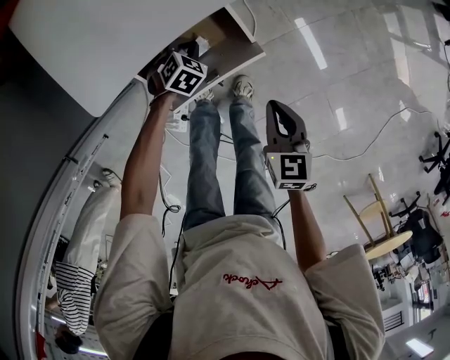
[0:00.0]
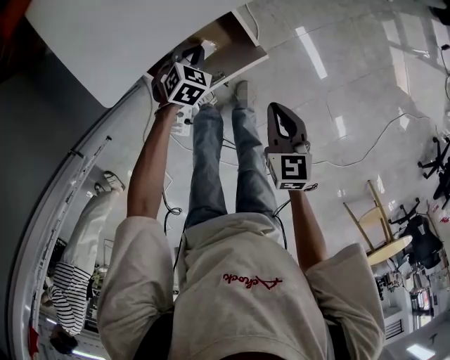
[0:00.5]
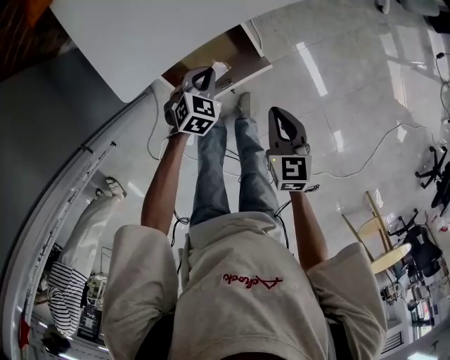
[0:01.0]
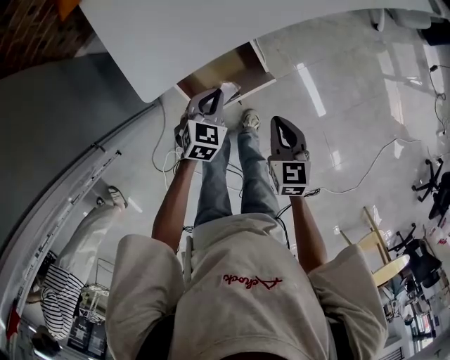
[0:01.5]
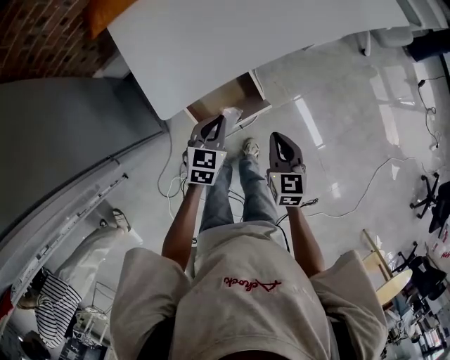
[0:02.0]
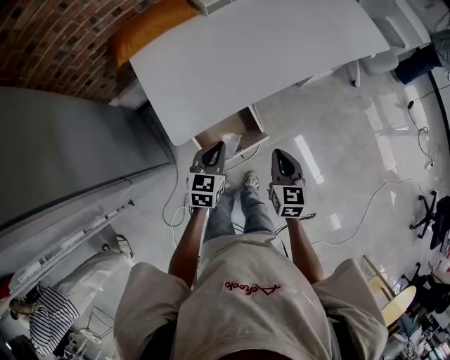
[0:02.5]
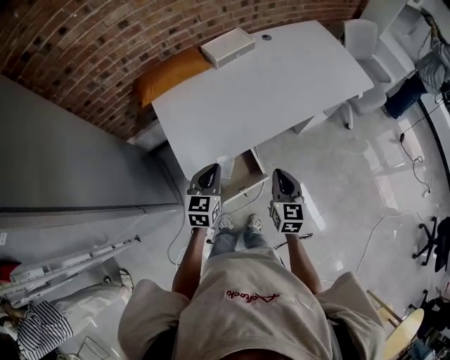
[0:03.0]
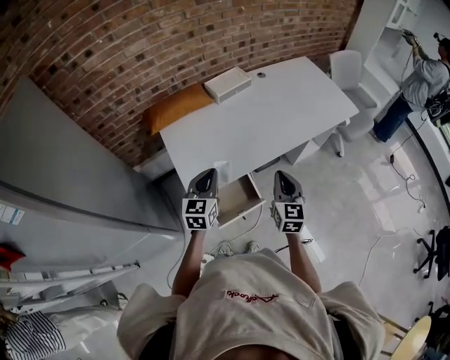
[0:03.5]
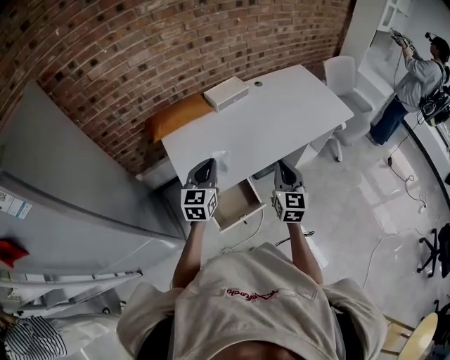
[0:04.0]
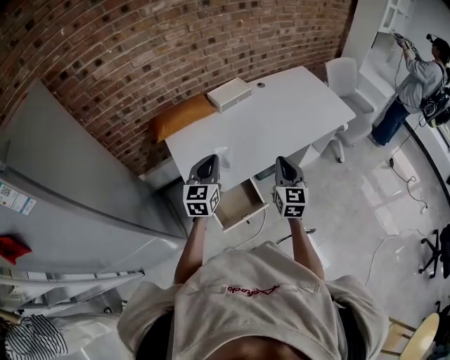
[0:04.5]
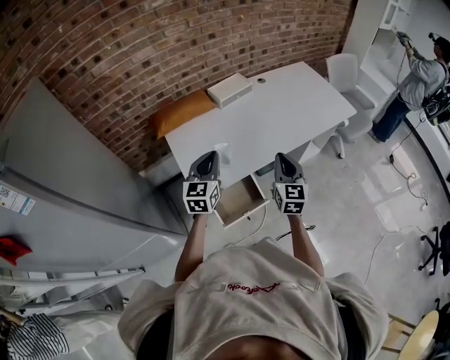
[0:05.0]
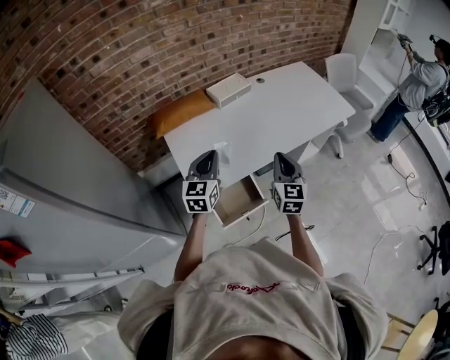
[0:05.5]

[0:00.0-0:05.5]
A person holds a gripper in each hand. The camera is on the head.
0.0 to 2.0 s: The left gripper travels upward by about 30 cm, and points its fingers roughly 30 degrees further upward, while the right gripper heads upward, covering roughly 15 cm.
2.0 to 3.5 s: Both grippers travel together upward, approximately 25 cm. The right gripper rotates roughly 30 degrees; the left gripper swivels roughly 30 degrees.
3.5 to 5.5 s: The right gripper ends up some 5 cm from where it was. Meanwhile the left gripper goes some 5 cm upward.

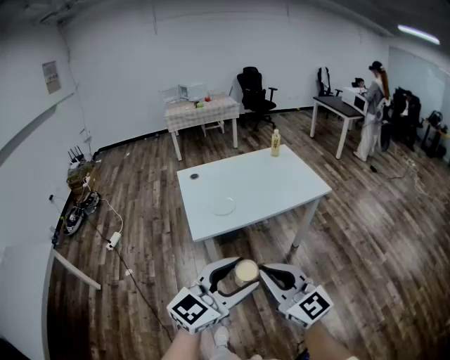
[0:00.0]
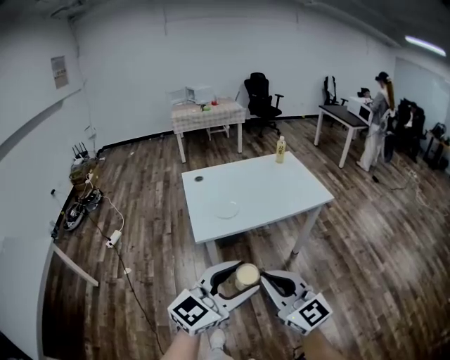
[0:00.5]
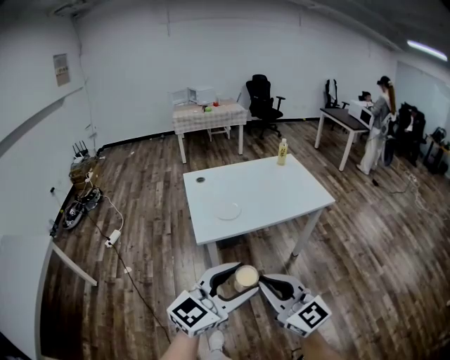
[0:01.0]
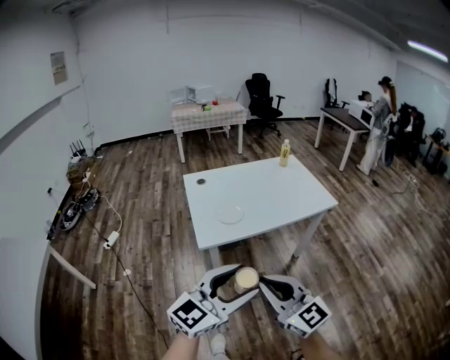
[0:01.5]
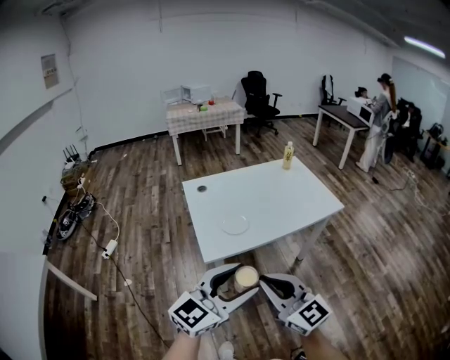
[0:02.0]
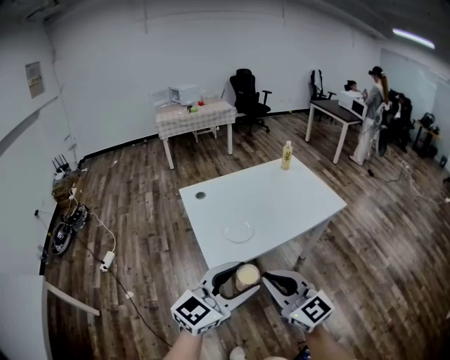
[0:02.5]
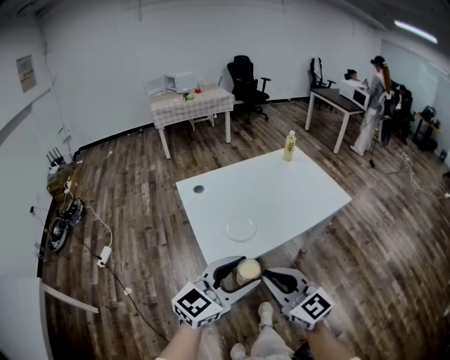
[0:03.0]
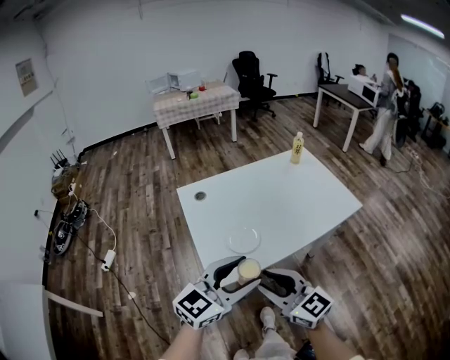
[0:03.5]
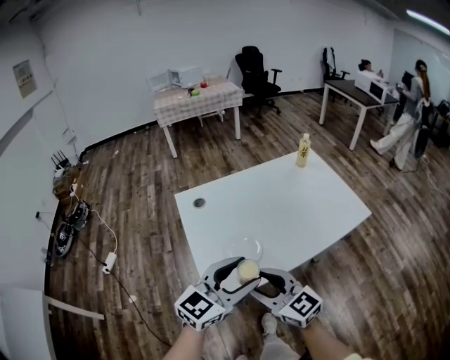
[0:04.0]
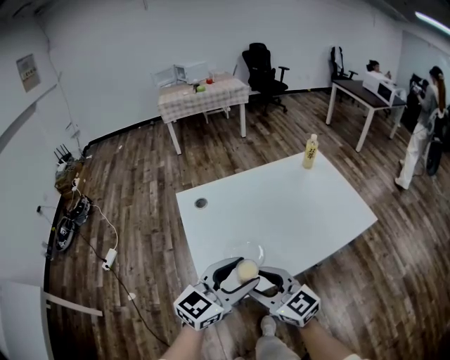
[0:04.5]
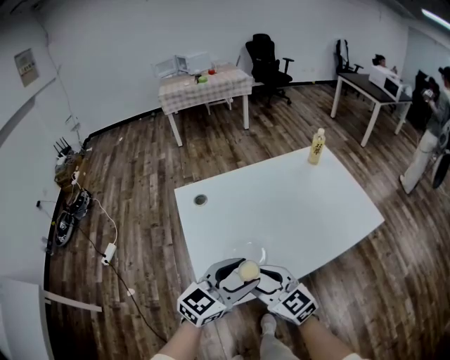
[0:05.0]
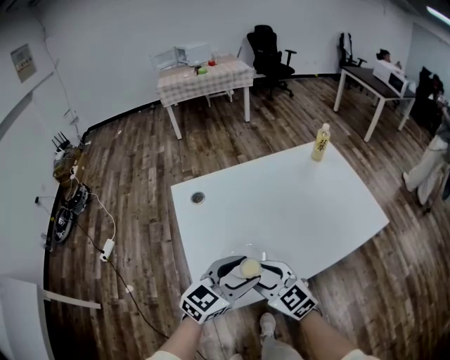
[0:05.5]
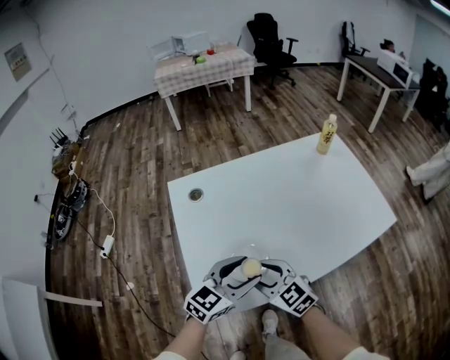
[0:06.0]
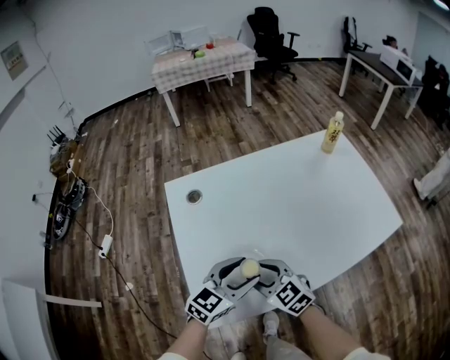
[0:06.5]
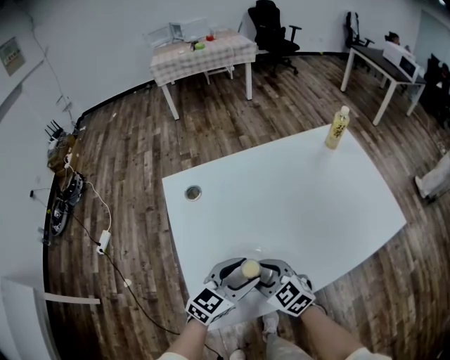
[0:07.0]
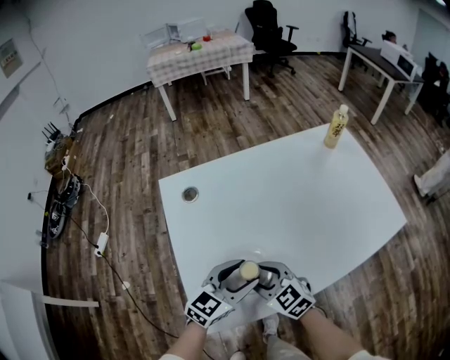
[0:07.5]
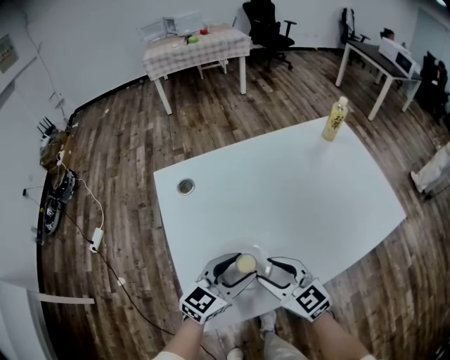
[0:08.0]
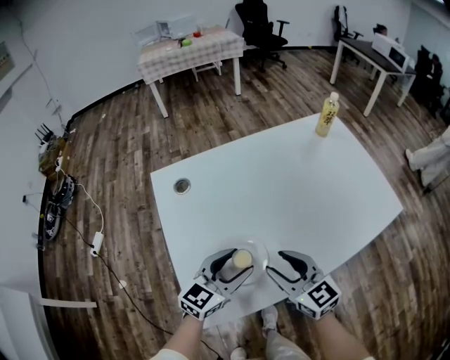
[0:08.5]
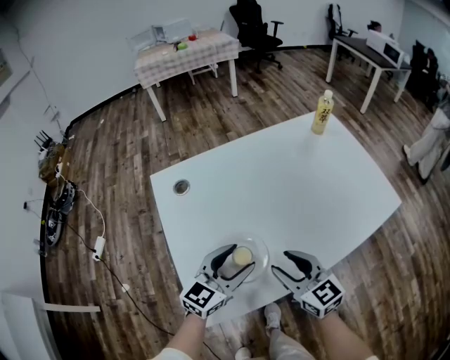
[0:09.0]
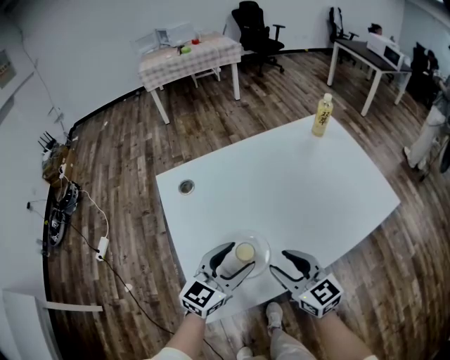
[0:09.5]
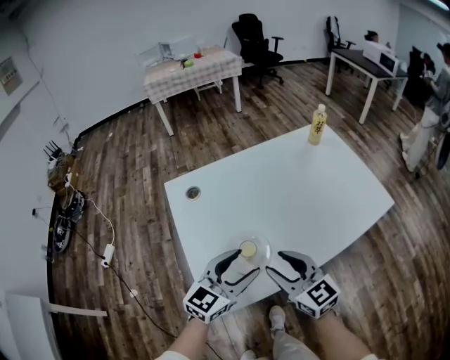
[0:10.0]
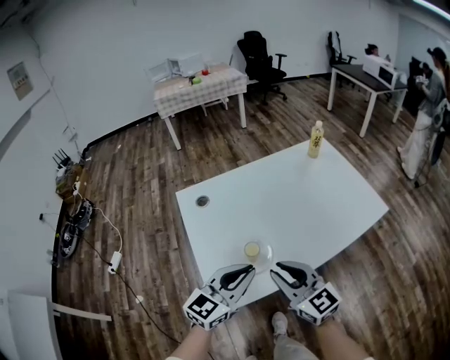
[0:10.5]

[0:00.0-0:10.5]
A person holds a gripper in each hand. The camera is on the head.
0.0 to 2.0 s: The left gripper shifts about 15 cm forward and to the left, while the right gripper shifts roughly 10 cm to the left and forward.
2.0 to 4.0 s: The right gripper goes about 25 cm forward and downward, and opens. The left gripper heads forward, covering approximately 25 cm.
4.0 to 6.5 s: The two grippers go approximately 25 cm downward and forward. The right gripper swivels about 30 degrees.
6.5 to 8.5 s: The right gripper goes about 5 cm to the right, and rotates some 20 degrees.
8.5 to 10.5 s: The two grippers go approximately 15 cm upward and backward. The left gripper closes, while the right gripper closes.

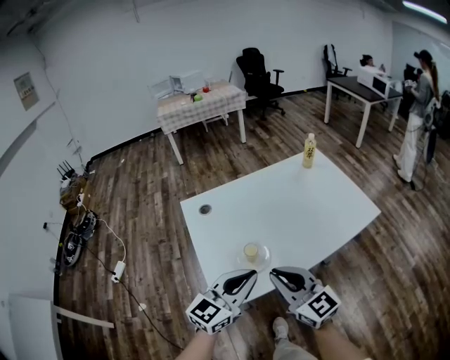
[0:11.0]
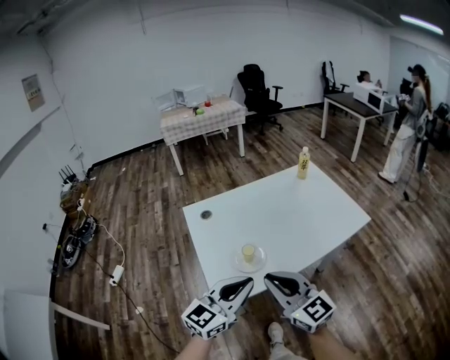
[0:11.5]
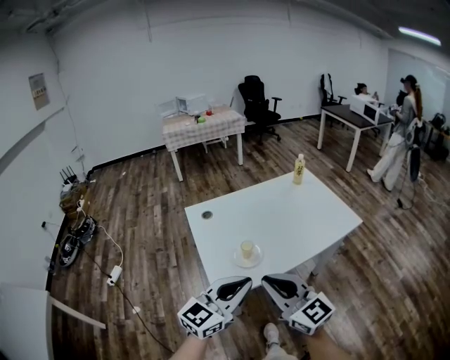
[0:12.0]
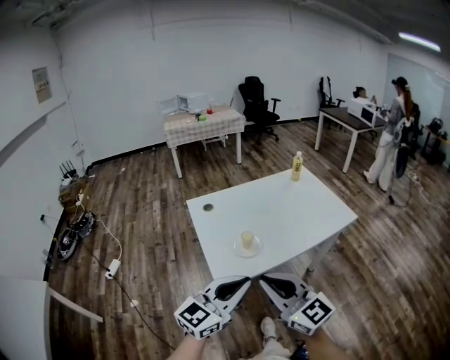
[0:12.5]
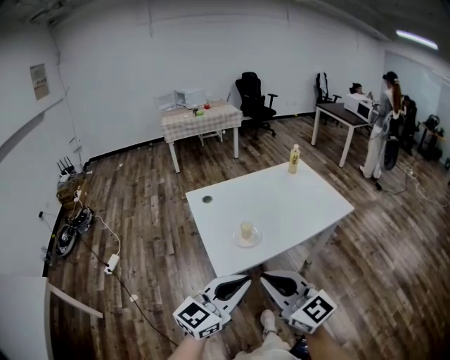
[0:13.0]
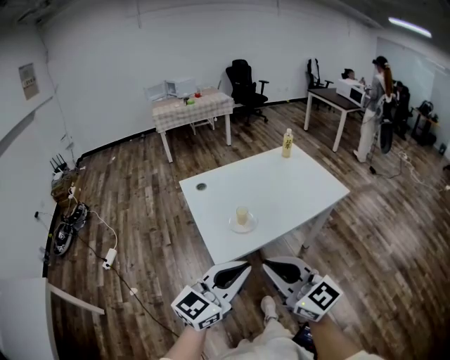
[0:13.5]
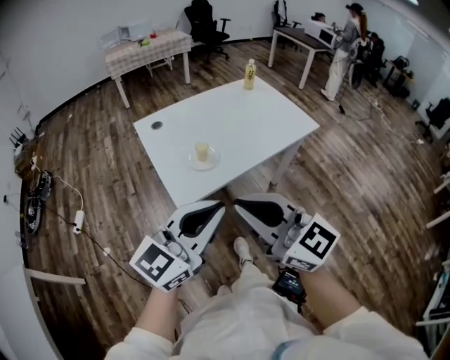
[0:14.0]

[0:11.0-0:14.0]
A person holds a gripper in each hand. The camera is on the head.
11.0 to 12.5 s: The two grippers go some 20 cm backward and upward.
12.5 to 14.0 s: The left gripper moves roughly 5 cm. Meanwhile the right gripper shifts by some 5 cm.

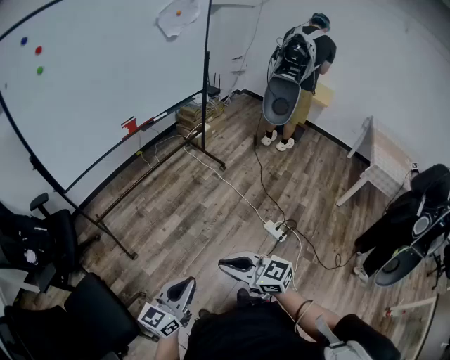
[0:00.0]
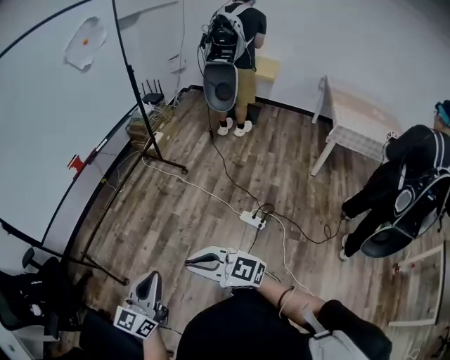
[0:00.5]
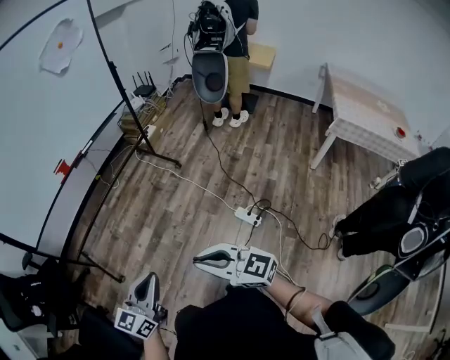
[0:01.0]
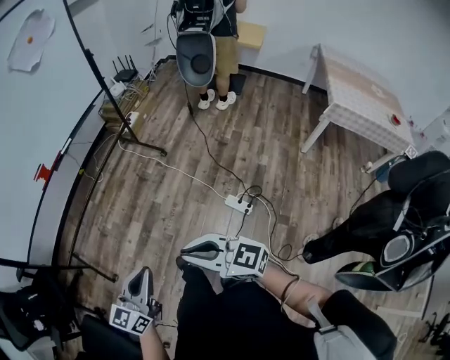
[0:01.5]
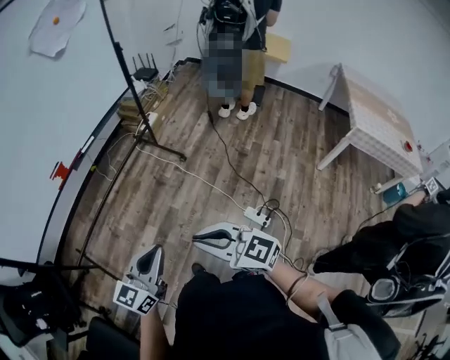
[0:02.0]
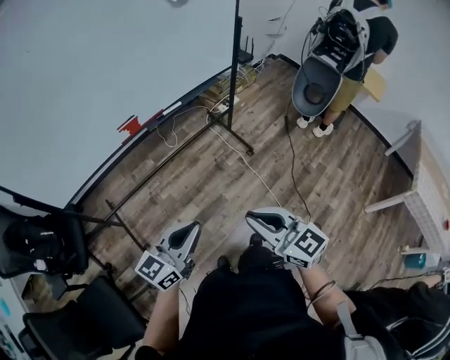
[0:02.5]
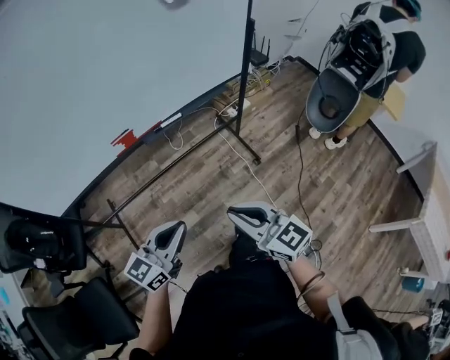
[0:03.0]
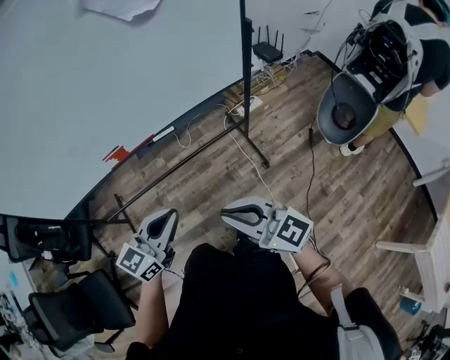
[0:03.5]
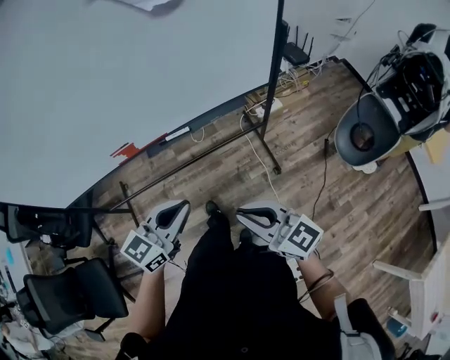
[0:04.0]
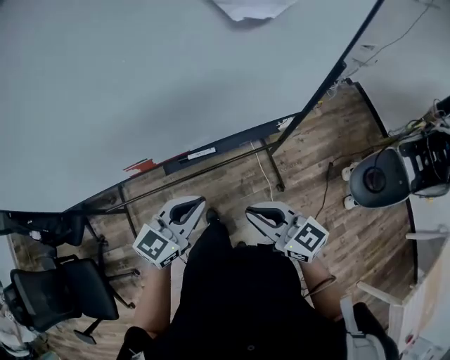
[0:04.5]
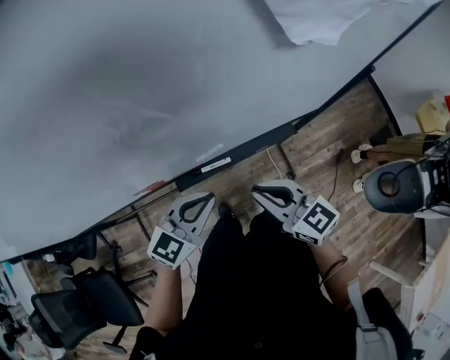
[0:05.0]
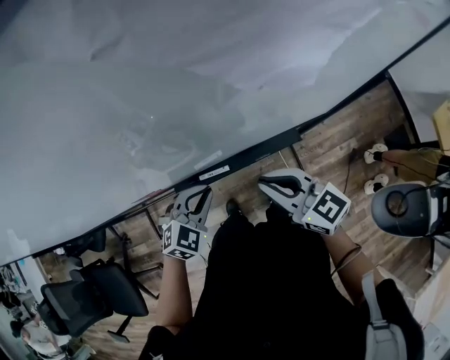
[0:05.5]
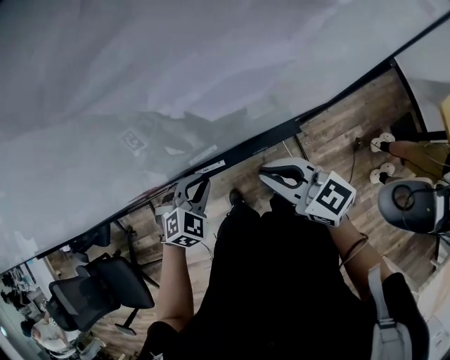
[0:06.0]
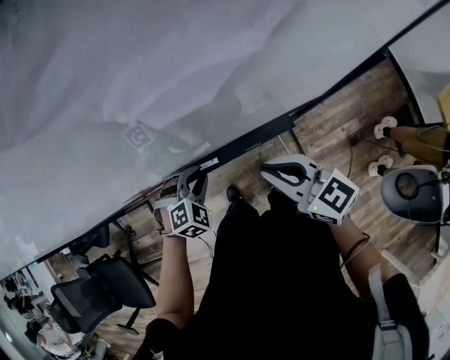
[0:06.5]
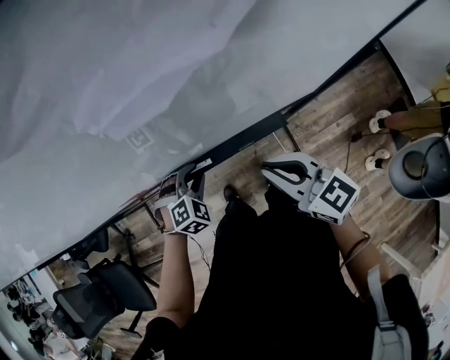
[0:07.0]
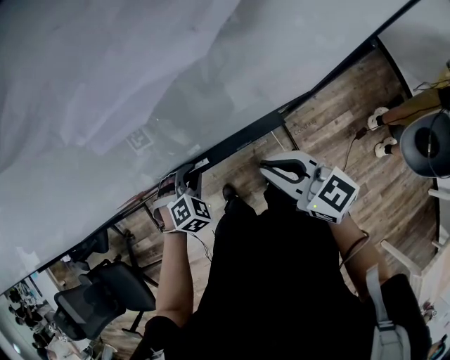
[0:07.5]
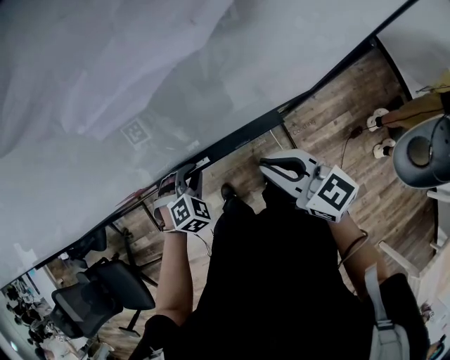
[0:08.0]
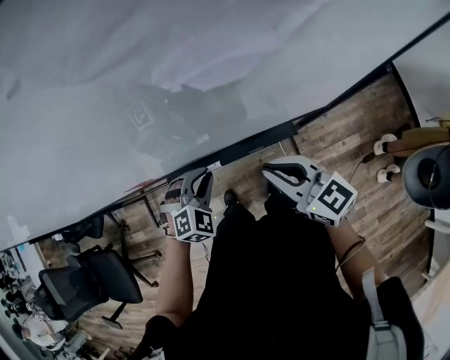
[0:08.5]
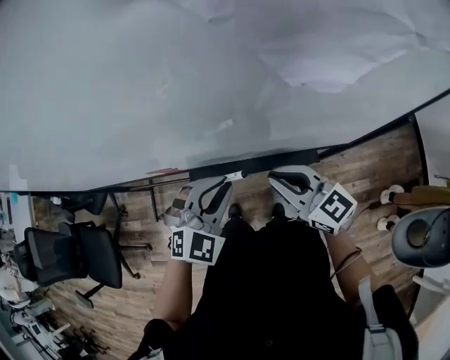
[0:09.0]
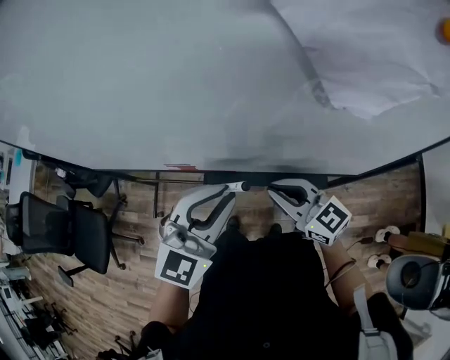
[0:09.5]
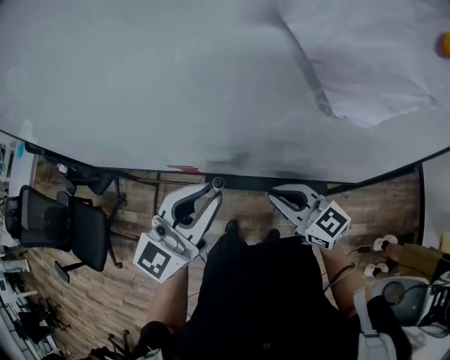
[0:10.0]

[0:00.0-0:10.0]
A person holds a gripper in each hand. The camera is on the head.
0.0 to 2.0 s: The two grippers go some 30 cm forward and to the right.
2.0 to 4.0 s: The two grippers travel together, about 40 cm. The left gripper rotates about 30 degrees. The right gripper turns by about 30 degrees.
4.0 to 6.0 s: The right gripper moves forward, approximately 30 cm, while the left gripper travels forward and downward by roughly 30 cm, and tips its fingers downward by some 40 degrees.
6.0 to 8.0 s: The left gripper ends up approximately 5 cm from where it was.
8.0 to 10.0 s: The left gripper travels upward by approximately 35 cm, and tips its fingers upward by roughly 70 degrees. Meanwhile the right gripper moves to the left, roughly 10 cm, and changes its angle by approximately 30 degrees.
